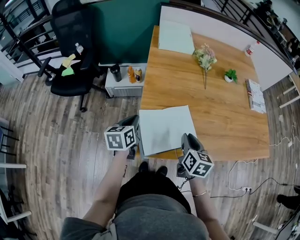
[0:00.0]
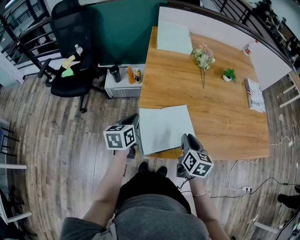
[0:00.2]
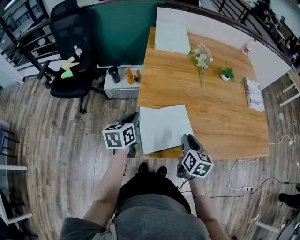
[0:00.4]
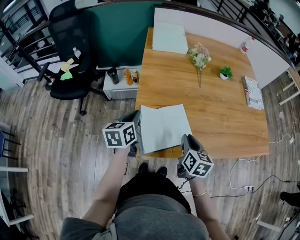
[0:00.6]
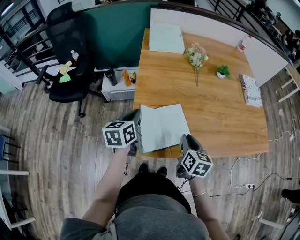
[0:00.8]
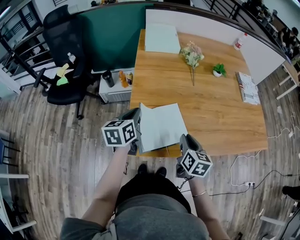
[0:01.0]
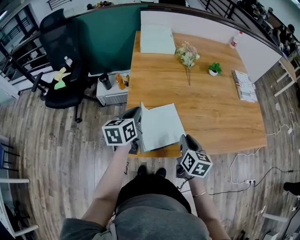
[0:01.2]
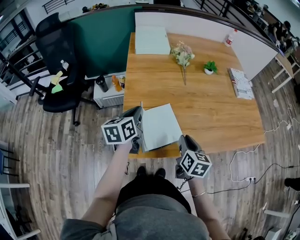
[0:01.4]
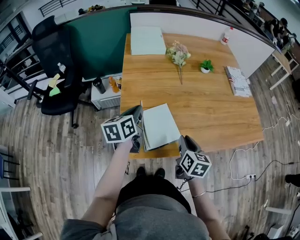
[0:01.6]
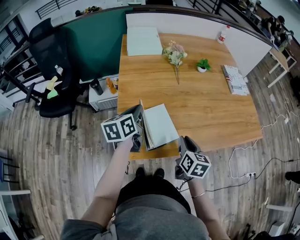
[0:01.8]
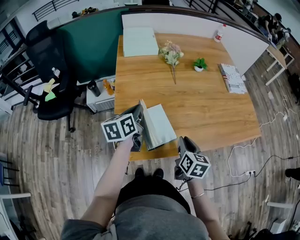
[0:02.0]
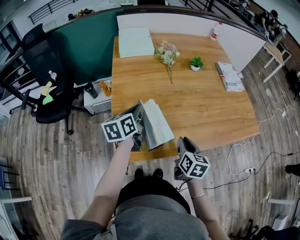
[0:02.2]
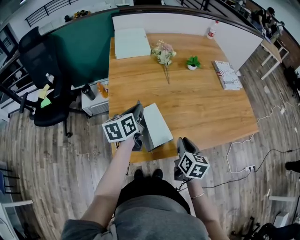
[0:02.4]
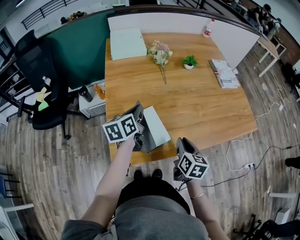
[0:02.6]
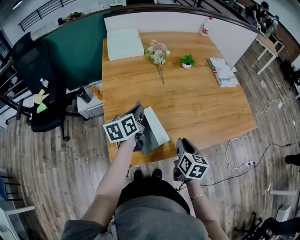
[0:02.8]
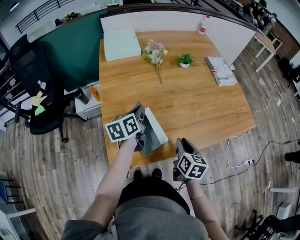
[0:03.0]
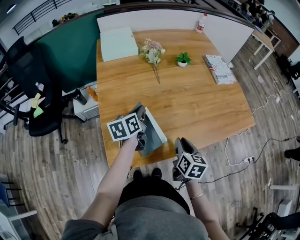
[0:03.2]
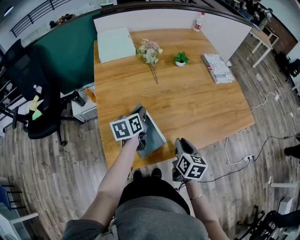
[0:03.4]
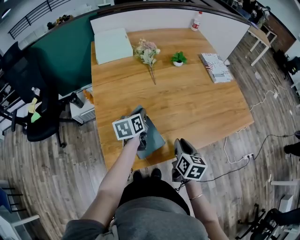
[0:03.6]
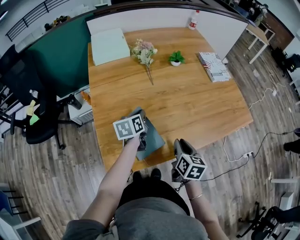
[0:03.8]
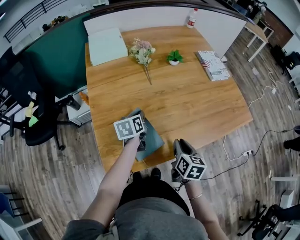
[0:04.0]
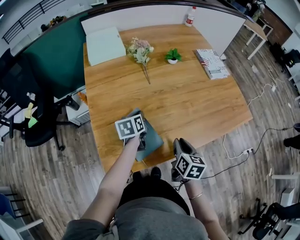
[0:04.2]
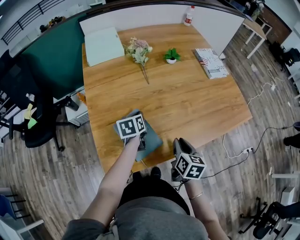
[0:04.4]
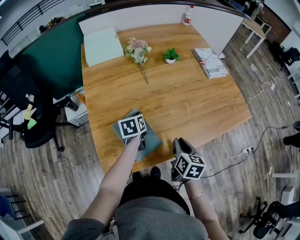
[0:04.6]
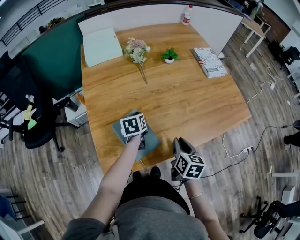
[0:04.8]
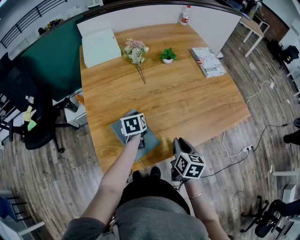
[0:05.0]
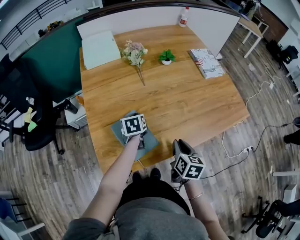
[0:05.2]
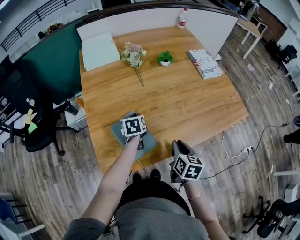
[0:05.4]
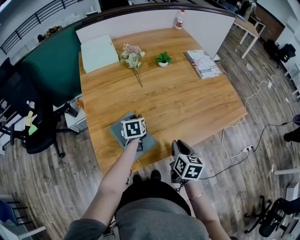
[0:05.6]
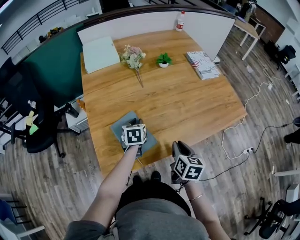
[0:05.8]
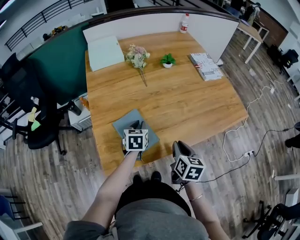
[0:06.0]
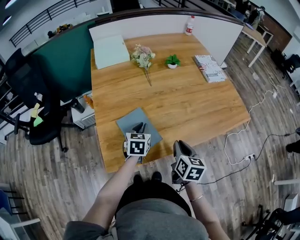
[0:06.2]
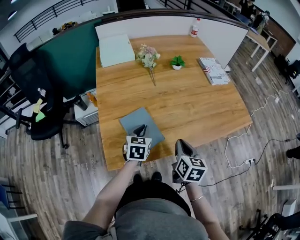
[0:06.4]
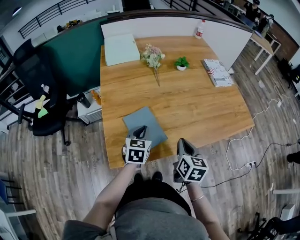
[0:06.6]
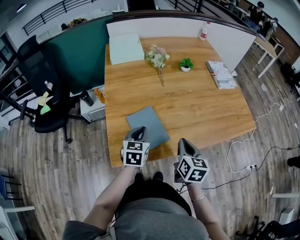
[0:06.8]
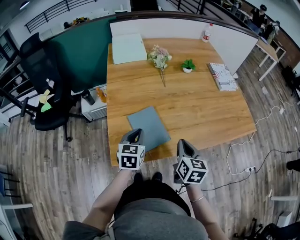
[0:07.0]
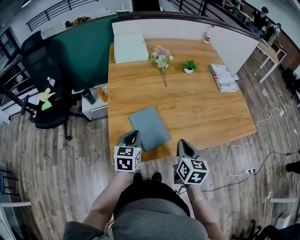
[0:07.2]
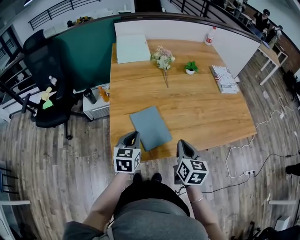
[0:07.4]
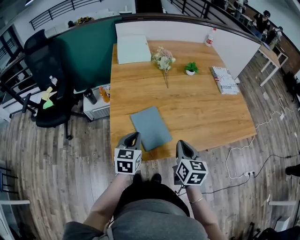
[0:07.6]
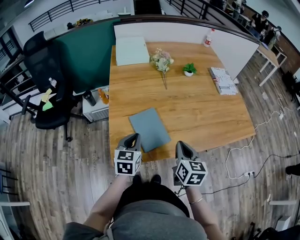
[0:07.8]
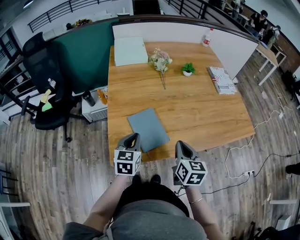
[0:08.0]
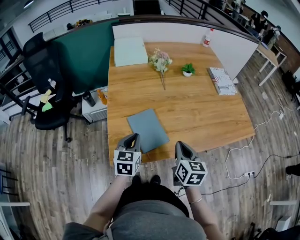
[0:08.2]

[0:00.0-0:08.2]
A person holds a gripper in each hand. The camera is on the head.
0:00.0 to 0:01.6: The right gripper moves to the right, roughly 10 cm. The left gripper moves to the right and upward, about 15 cm.
0:01.6 to 0:03.2: The right gripper travels to the right by about 5 cm. Meanwhile the left gripper shifts roughly 10 cm to the right and forward.
0:03.2 to 0:05.0: The left gripper moves downward, approximately 10 cm, and changes its angle by about 30 degrees.
0:05.0 to 0:06.6: The right gripper ends up about 5 cm from where it was. Meanwhile the left gripper travels backward and upward by about 15 cm, and turns by about 20 degrees.
0:06.6 to 0:08.2: The left gripper heads to the left and backward, covering about 5 cm.

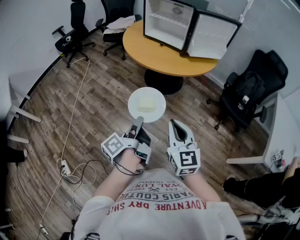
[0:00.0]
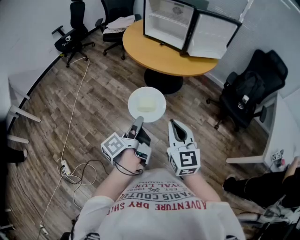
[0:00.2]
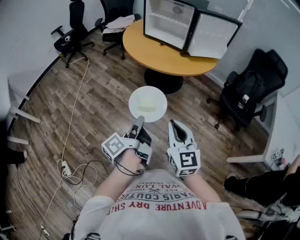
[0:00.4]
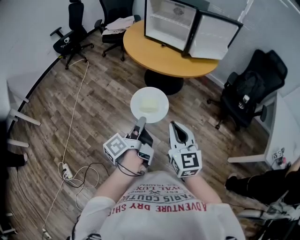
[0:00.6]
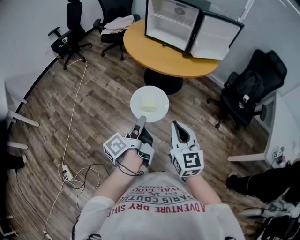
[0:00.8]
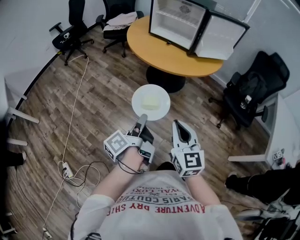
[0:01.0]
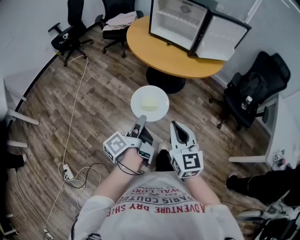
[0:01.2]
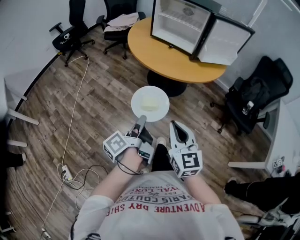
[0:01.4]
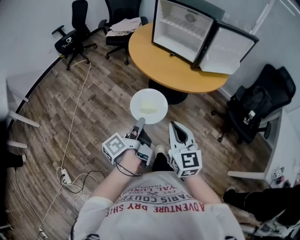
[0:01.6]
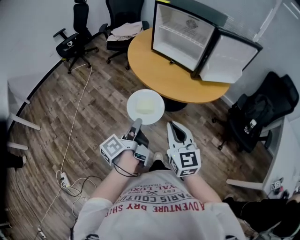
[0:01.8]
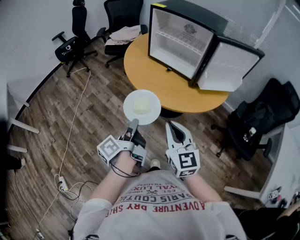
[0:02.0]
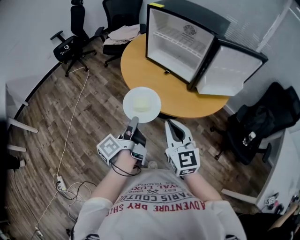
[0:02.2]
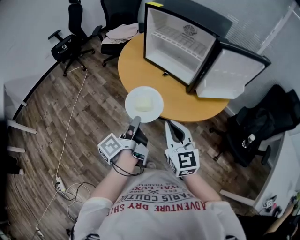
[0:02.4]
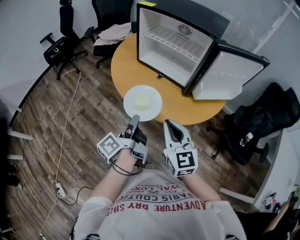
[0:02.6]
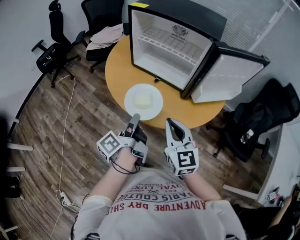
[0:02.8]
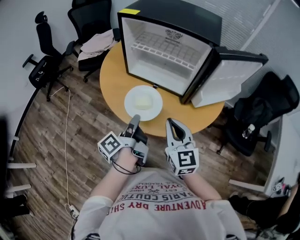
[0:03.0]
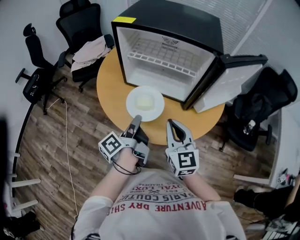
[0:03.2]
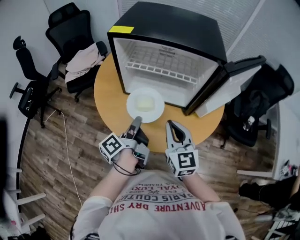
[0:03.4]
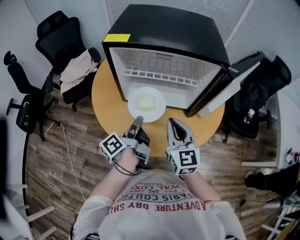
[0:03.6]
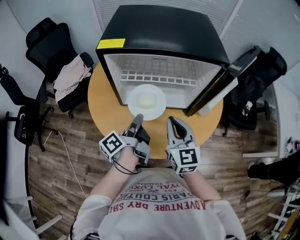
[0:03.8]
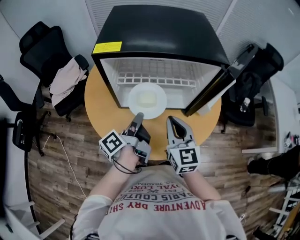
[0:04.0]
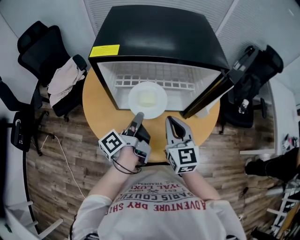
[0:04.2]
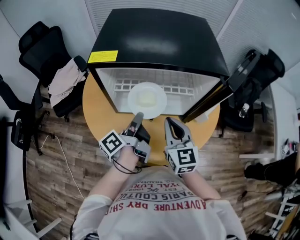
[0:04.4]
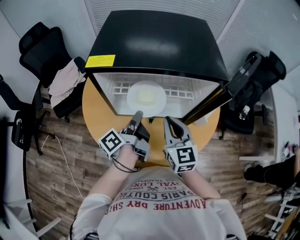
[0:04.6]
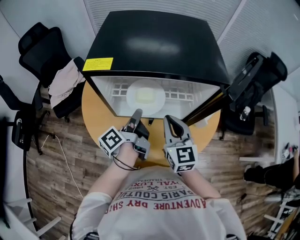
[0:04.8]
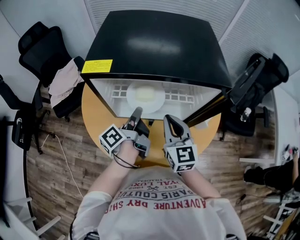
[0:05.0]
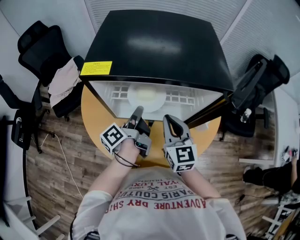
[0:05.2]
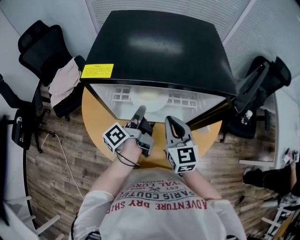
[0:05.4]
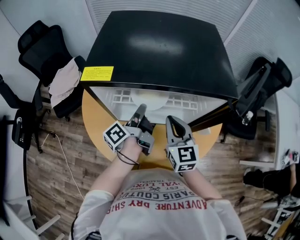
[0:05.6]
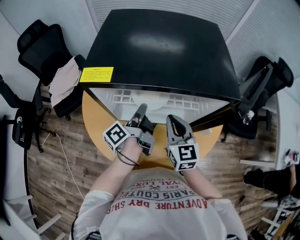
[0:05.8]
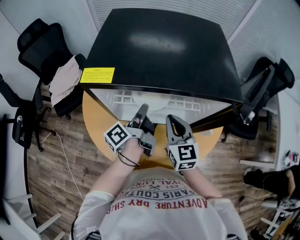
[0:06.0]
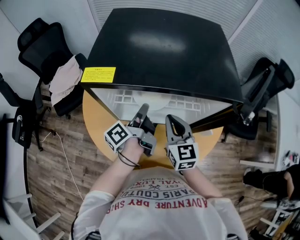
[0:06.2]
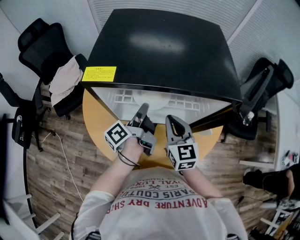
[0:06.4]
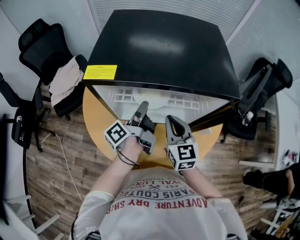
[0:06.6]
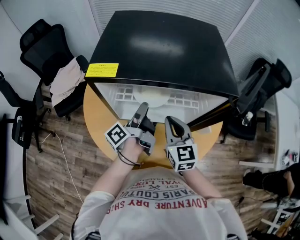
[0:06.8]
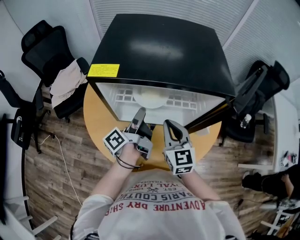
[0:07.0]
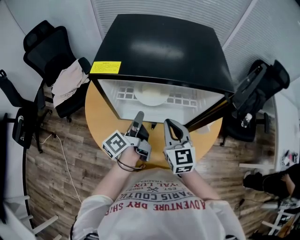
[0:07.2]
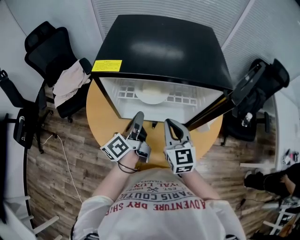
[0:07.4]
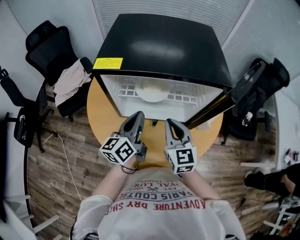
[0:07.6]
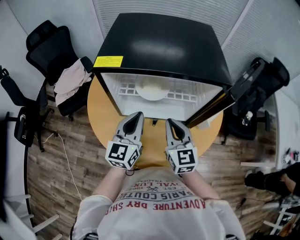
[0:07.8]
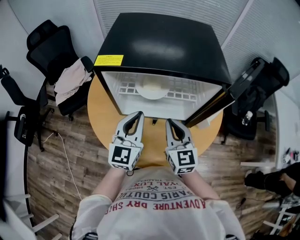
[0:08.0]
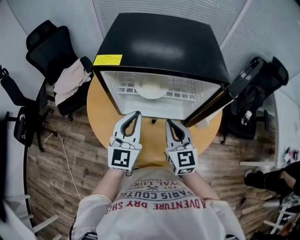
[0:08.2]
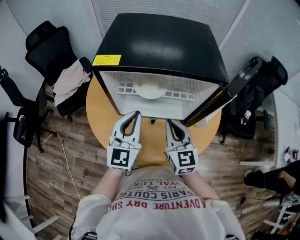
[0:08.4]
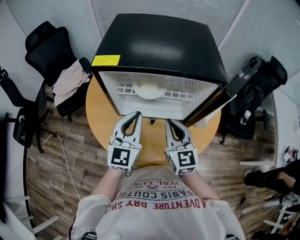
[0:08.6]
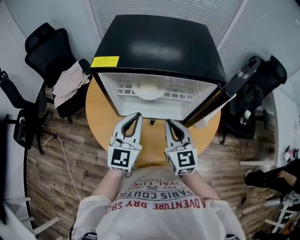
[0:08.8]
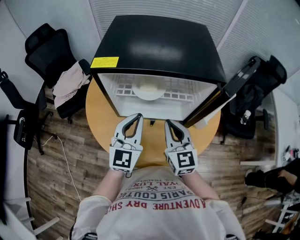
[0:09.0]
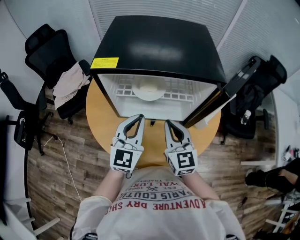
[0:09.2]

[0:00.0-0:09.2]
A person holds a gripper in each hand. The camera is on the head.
0:00.0 to 0:01.6: The right gripper ends up about 15 cm from where it was.
0:01.6 to 0:03.0: The right gripper changes place by approximately 35 cm.
0:03.0 to 0:04.6: The right gripper moves about 20 cm, and turns by roughly 20 degrees.
0:04.6 to 0:06.2: The right gripper shifts by roughly 5 cm.
0:06.2 to 0:07.6: The right gripper changes place by about 5 cm.

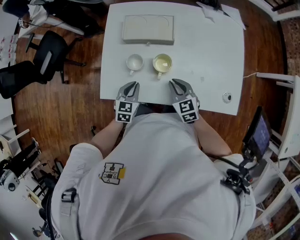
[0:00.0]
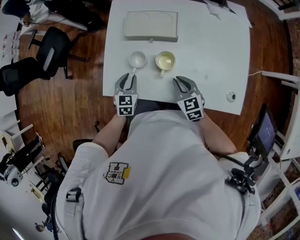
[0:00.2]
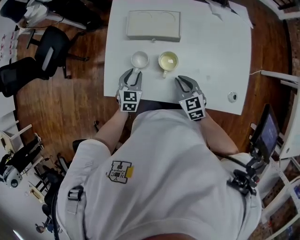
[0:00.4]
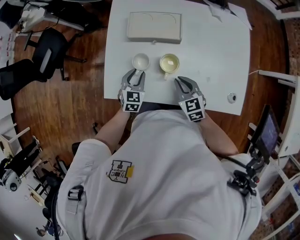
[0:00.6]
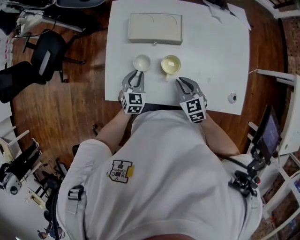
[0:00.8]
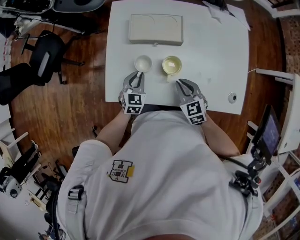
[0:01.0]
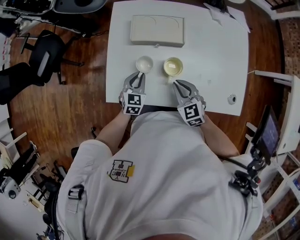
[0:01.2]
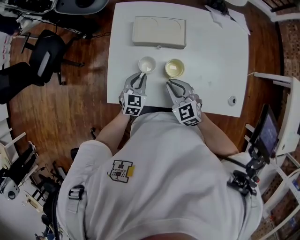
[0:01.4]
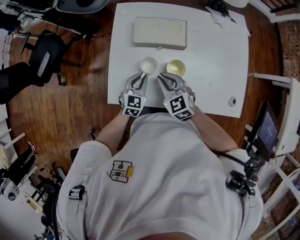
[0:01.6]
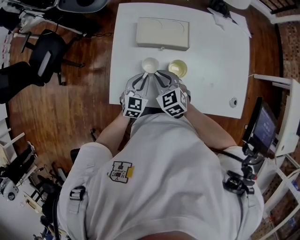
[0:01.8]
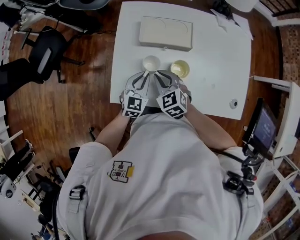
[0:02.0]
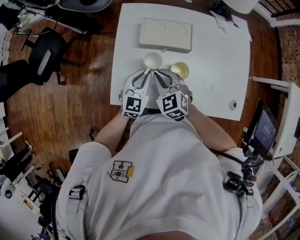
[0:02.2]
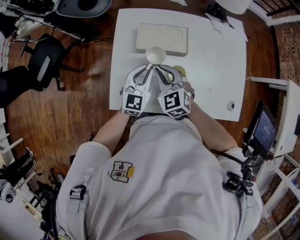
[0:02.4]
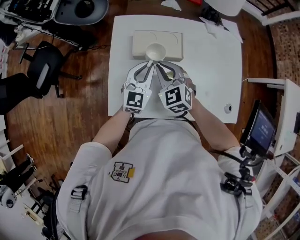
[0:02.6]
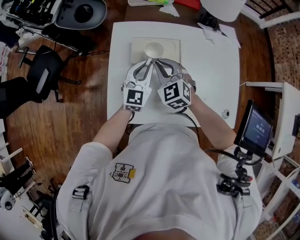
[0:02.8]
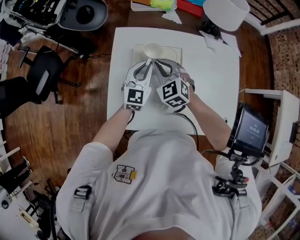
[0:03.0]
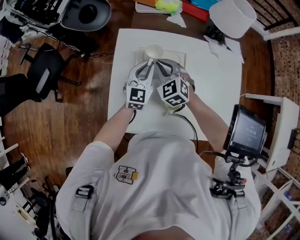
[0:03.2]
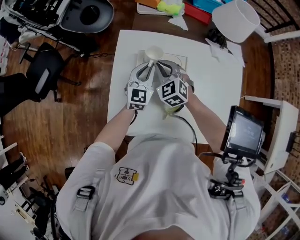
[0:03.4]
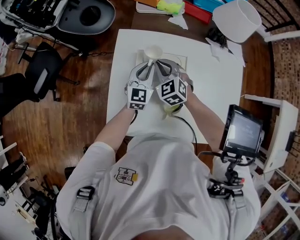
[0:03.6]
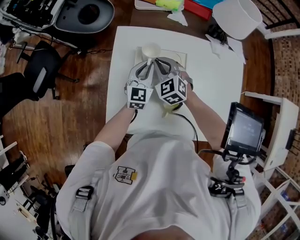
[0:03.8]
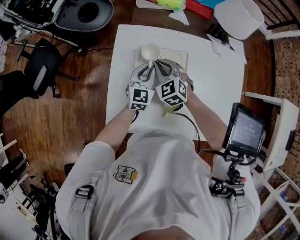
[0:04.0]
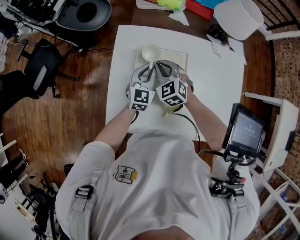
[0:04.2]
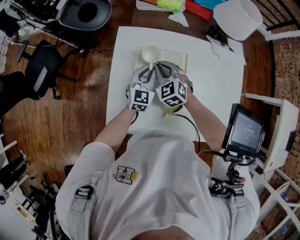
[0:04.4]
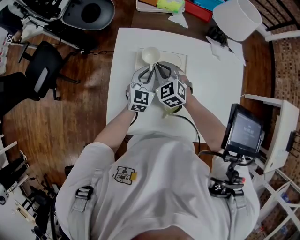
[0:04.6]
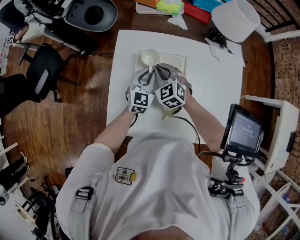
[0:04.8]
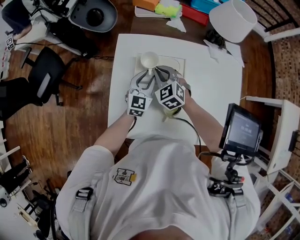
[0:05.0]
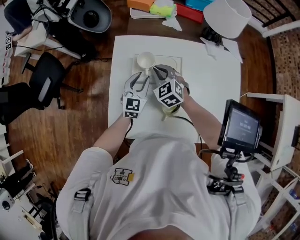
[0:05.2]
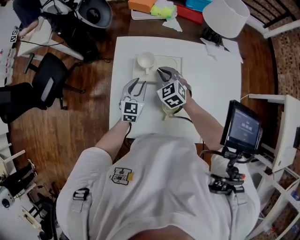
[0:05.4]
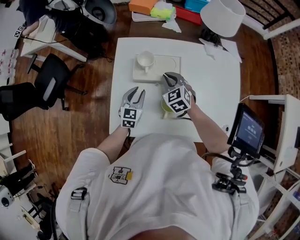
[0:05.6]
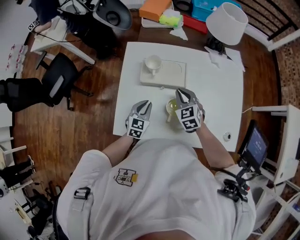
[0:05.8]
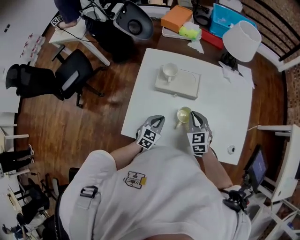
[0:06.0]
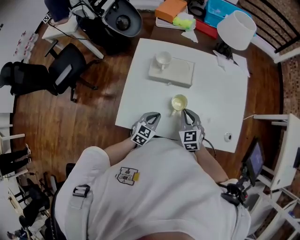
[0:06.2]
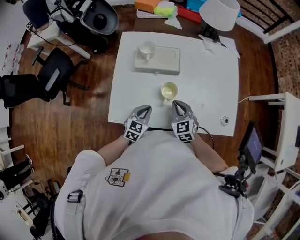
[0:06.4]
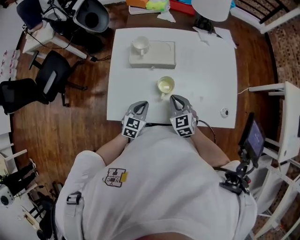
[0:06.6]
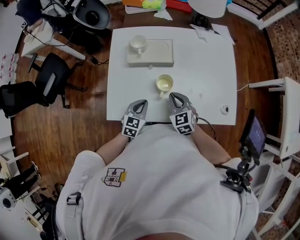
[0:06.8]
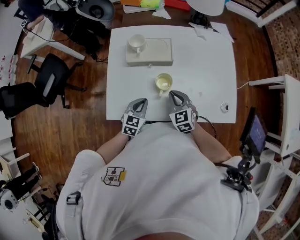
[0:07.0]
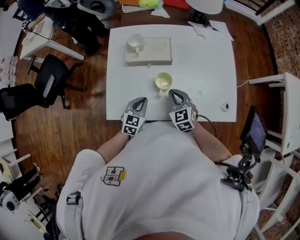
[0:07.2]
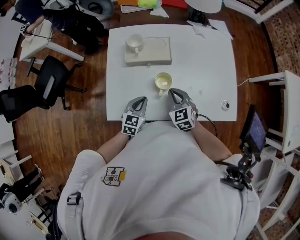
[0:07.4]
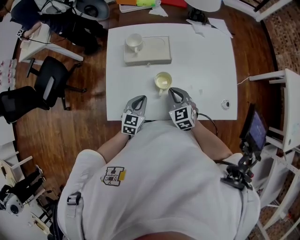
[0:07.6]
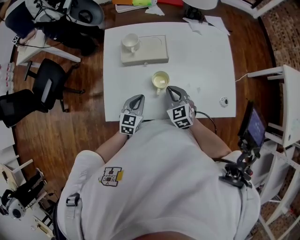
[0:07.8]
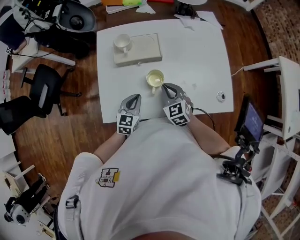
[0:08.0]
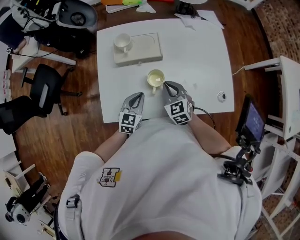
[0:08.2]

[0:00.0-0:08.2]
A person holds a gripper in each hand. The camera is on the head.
0:00.0 to 0:01.6: The left gripper shifts about 5 cm forward. Meanwhile the right gripper travels to the left, forward and upward by about 15 cm.
0:01.6 to 0:03.2: The left gripper goes approximately 20 cm forward and upward, and turns by some 20 degrees. Meanwhile the right gripper heads forward, covering about 20 cm.
0:03.2 to 0:05.0: The left gripper heads downward, covering some 5 cm.
0:05.0 to 0:06.6: The right gripper shifts roughly 25 cm backward and to the right, while the left gripper shifts roughly 25 cm backward, and closes its fingers.
0:06.6 to 0:08.2: The grippers make only small movements.
